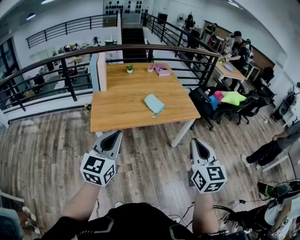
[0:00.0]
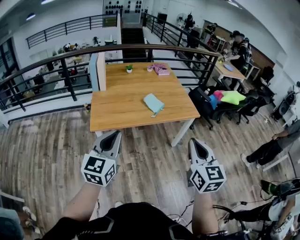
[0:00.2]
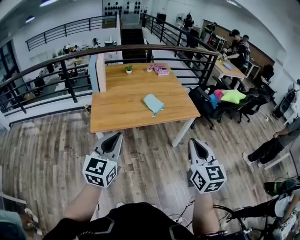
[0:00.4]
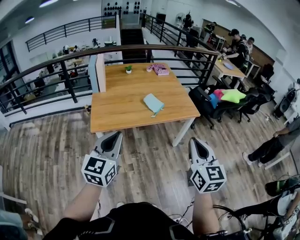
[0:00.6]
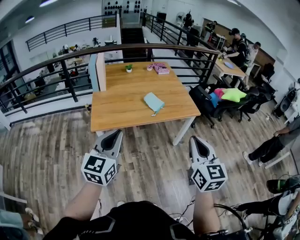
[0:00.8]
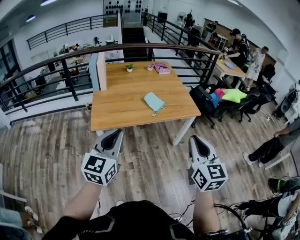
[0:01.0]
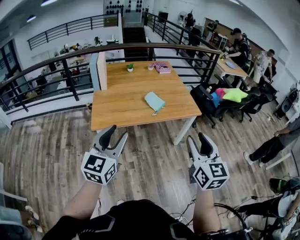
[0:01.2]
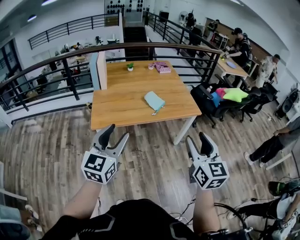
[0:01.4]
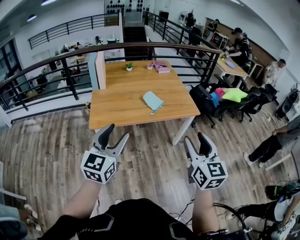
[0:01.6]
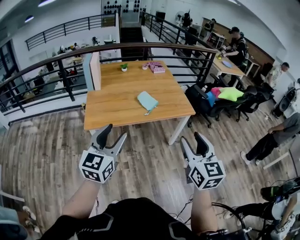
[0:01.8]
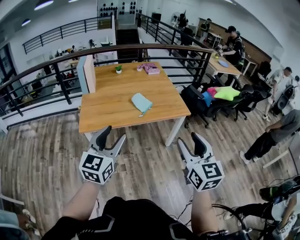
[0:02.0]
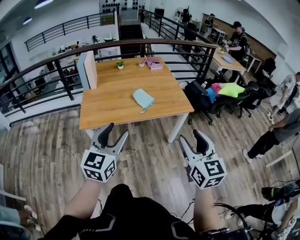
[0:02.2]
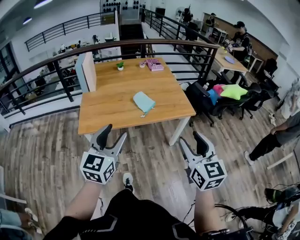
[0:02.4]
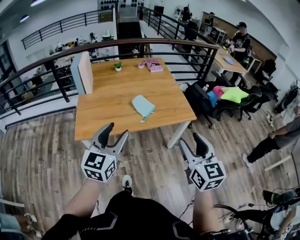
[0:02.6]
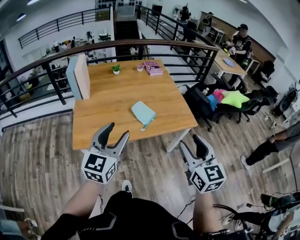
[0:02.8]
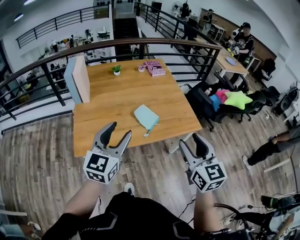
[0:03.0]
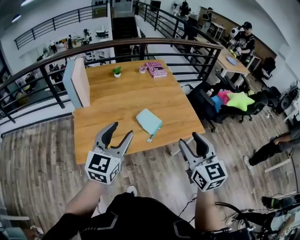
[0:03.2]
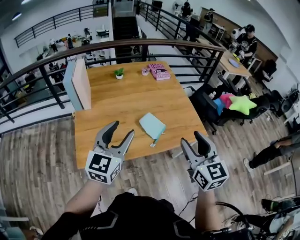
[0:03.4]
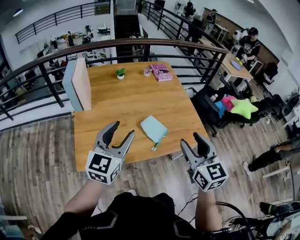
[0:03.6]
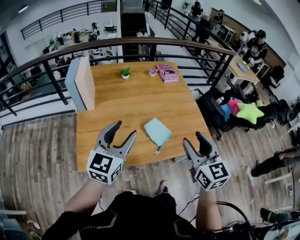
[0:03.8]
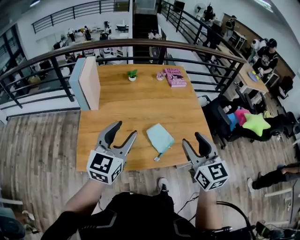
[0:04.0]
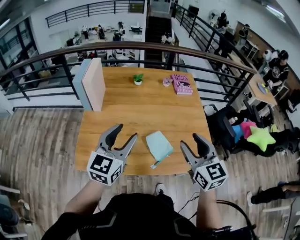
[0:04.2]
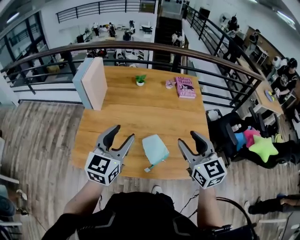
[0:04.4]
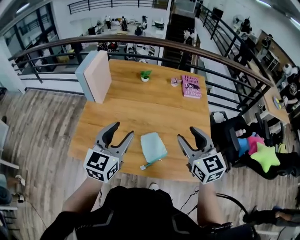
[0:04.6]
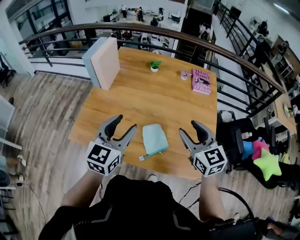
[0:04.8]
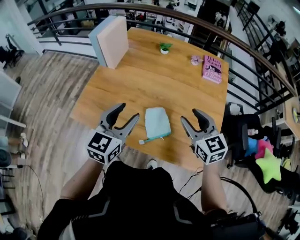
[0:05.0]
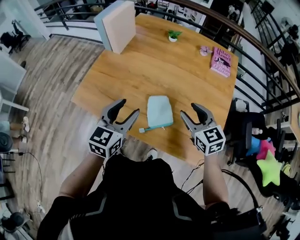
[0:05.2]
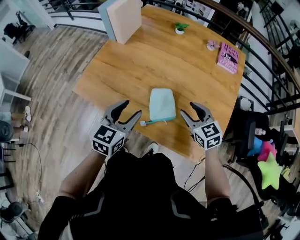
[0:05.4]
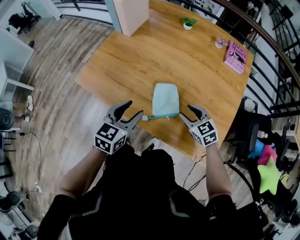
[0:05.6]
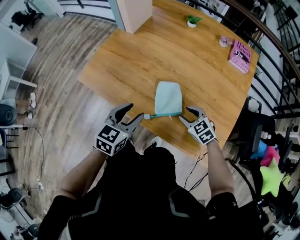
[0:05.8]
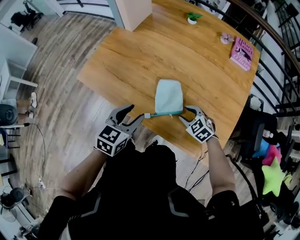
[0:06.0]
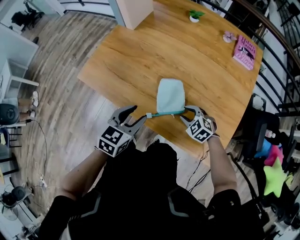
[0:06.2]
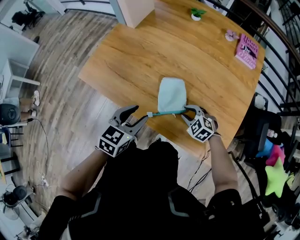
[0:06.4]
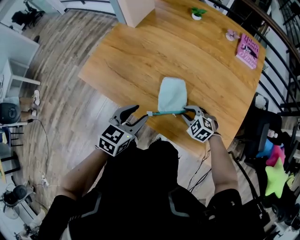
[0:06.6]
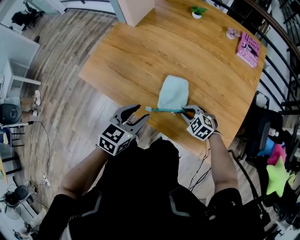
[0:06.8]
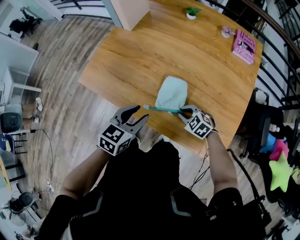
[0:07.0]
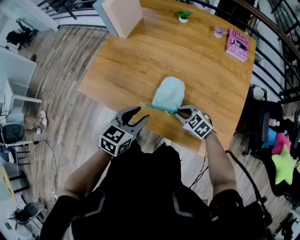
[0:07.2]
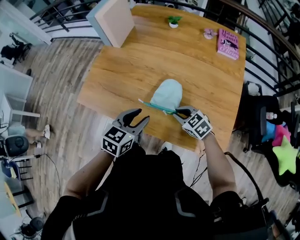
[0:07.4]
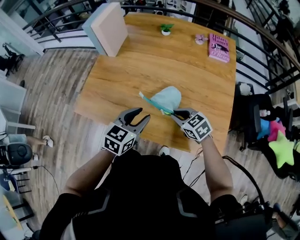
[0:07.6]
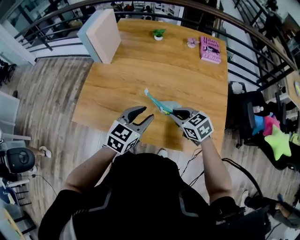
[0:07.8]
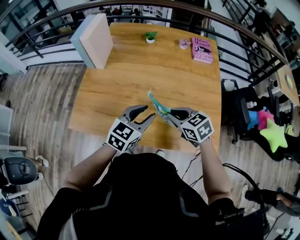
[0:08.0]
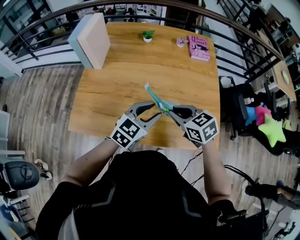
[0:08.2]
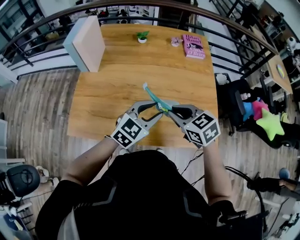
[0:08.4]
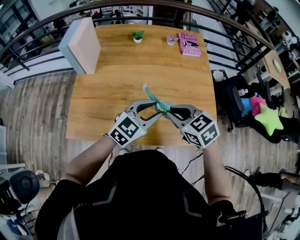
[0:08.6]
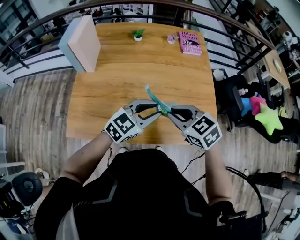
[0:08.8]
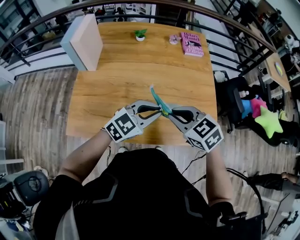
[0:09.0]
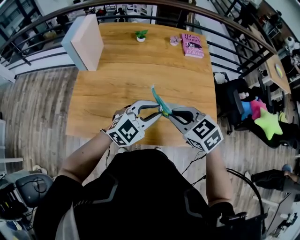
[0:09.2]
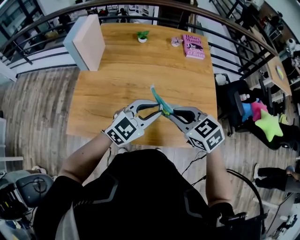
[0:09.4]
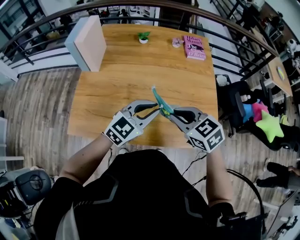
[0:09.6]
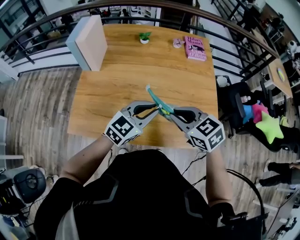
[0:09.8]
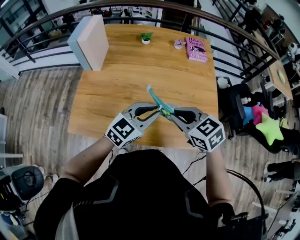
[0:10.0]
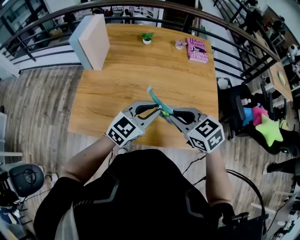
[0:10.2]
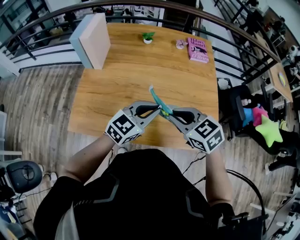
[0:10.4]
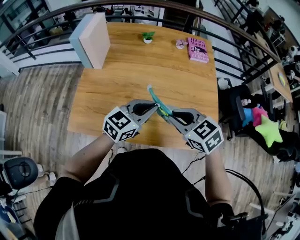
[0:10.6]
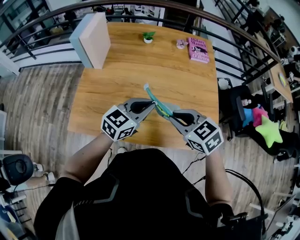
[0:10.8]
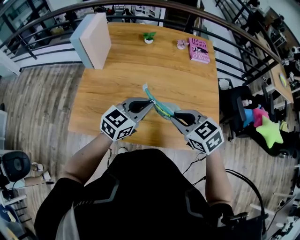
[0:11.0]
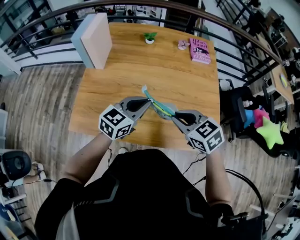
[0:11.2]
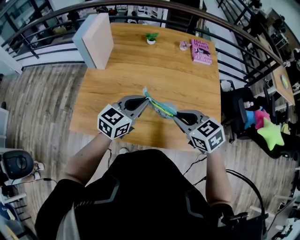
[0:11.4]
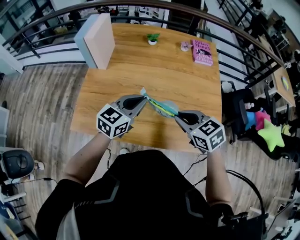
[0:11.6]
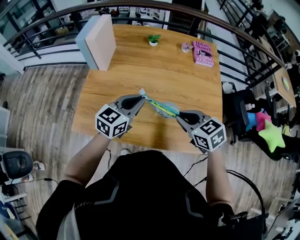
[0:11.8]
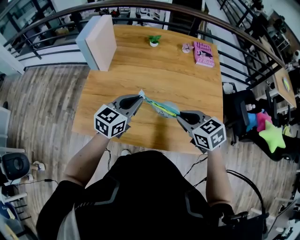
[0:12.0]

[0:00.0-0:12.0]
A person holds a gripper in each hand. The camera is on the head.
0:00.0 to 0:01.6: The right gripper opens up, while the left gripper opens its fingers.
0:01.6 to 0:03.0: The two grippers go roughly 25 cm forward.
0:03.0 to 0:04.4: The two grippers go roughly 25 cm forward. The right gripper rotates roughly 30 degrees.
0:04.4 to 0:06.0: The left gripper travels downward by approximately 20 cm, and swivels some 30 degrees. The right gripper goes approximately 35 cm downward, and tilts its fingers about 40 degrees downward.
0:06.0 to 0:07.6: The right gripper moves upward, some 10 cm, changes its angle by about 30 degrees, and closes its fingers. The left gripper shifts by roughly 5 cm.
0:07.6 to 0:09.0: The left gripper changes place by roughly 10 cm, turns by some 50 degrees, and closes up, while the right gripper shifts some 15 cm upward.
0:09.0 to 0:10.4: The grippers make only small movements.
0:10.4 to 0:12.0: The left gripper shifts some 10 cm to the left and forward.

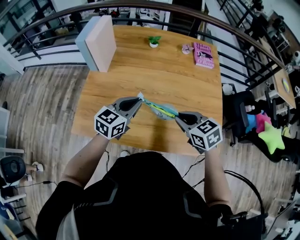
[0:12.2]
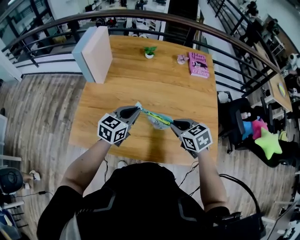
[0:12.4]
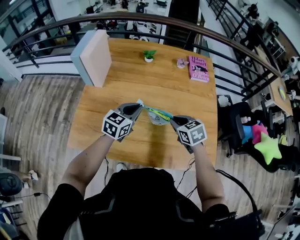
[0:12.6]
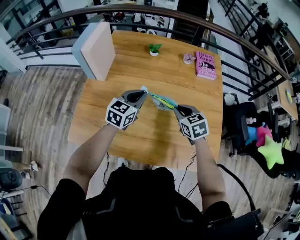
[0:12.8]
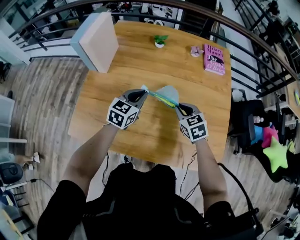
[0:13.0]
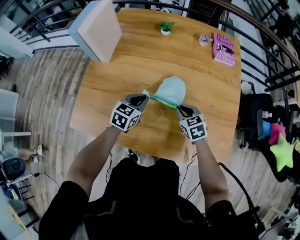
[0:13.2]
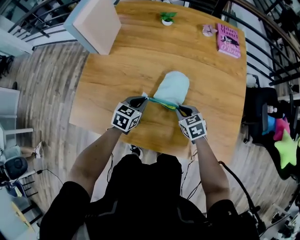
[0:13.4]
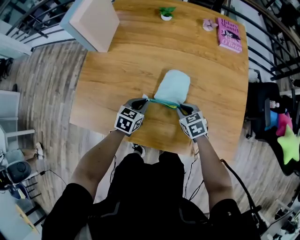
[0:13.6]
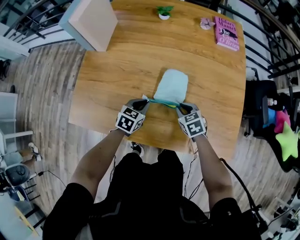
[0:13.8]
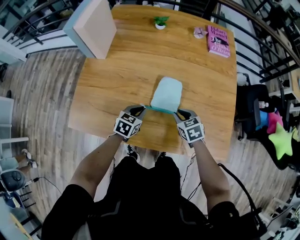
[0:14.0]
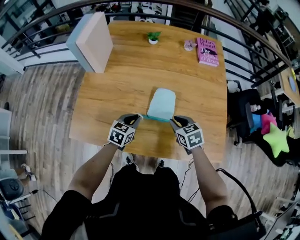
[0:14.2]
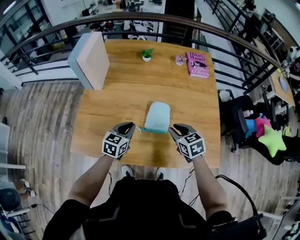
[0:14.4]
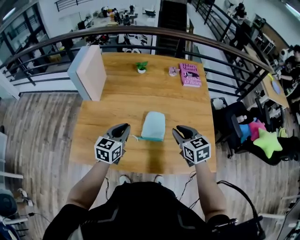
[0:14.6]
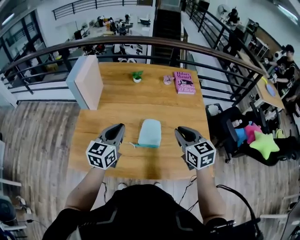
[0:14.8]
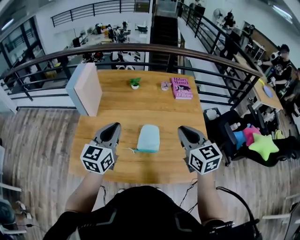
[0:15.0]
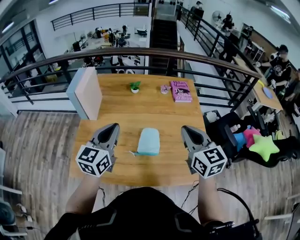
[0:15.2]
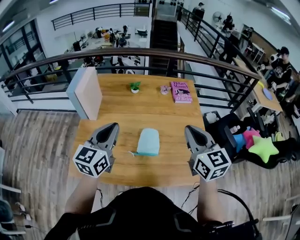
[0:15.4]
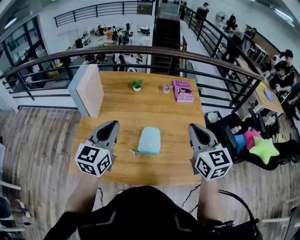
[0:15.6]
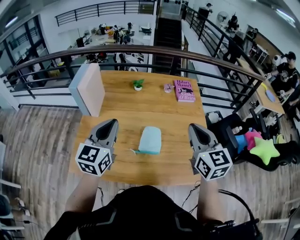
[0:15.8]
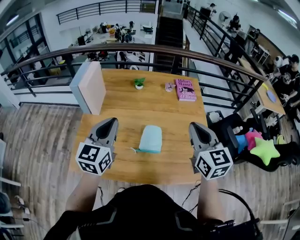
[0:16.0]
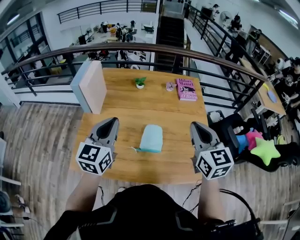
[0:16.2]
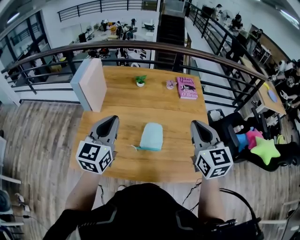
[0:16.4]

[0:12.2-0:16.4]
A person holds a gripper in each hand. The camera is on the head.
0:12.2 to 0:13.6: Both grippers move downward, roughly 25 cm. The left gripper rotates about 30 degrees.
0:13.6 to 0:15.0: Both grippers move upward, roughly 35 cm. The right gripper points its fingers about 40 degrees further upward. Meanwhile the left gripper tilts its fingers approximately 40 degrees upward.
0:15.0 to 0:16.4: The right gripper is displaced upward by roughly 5 cm.

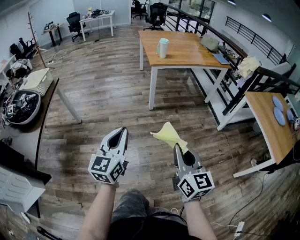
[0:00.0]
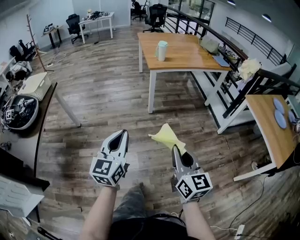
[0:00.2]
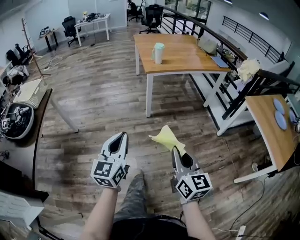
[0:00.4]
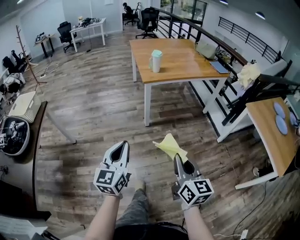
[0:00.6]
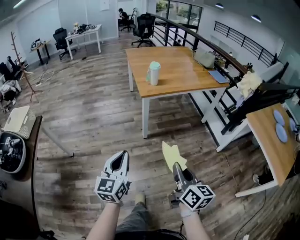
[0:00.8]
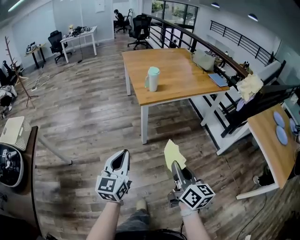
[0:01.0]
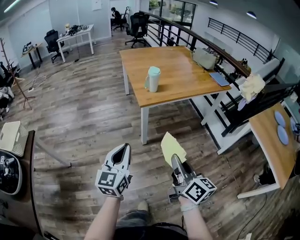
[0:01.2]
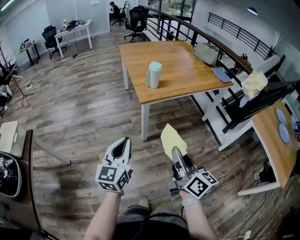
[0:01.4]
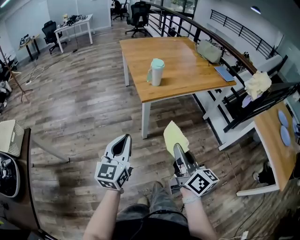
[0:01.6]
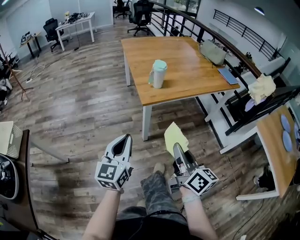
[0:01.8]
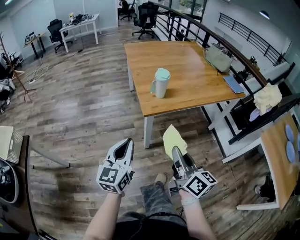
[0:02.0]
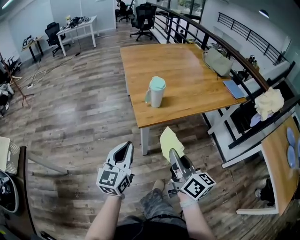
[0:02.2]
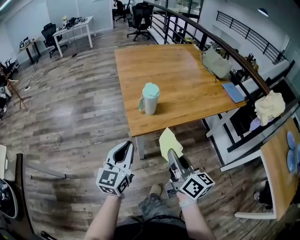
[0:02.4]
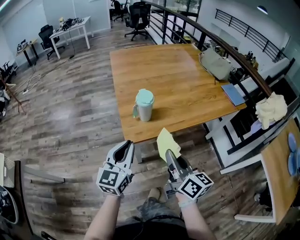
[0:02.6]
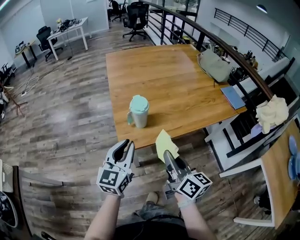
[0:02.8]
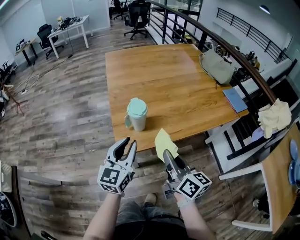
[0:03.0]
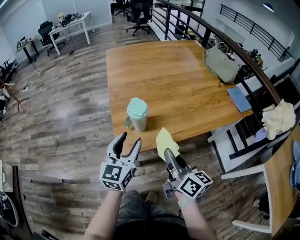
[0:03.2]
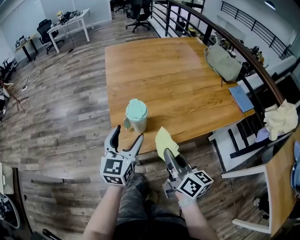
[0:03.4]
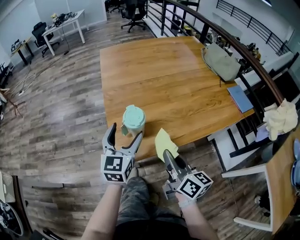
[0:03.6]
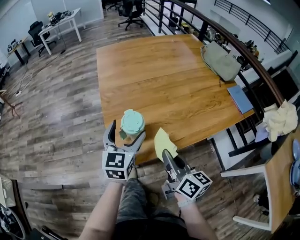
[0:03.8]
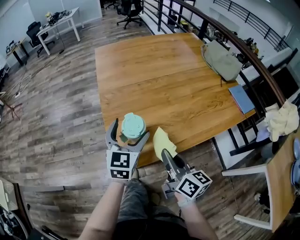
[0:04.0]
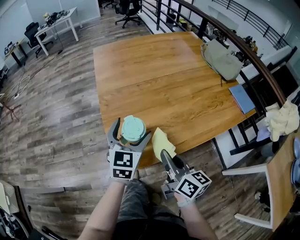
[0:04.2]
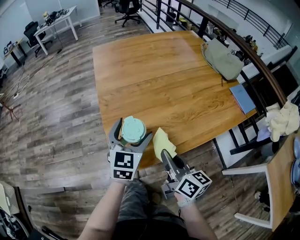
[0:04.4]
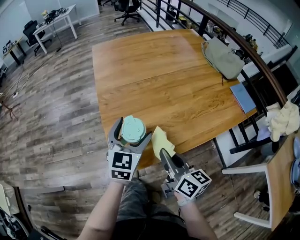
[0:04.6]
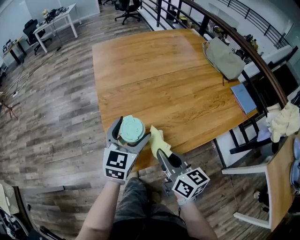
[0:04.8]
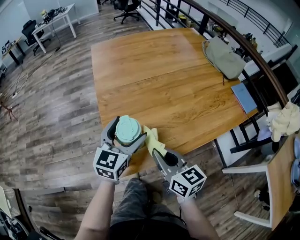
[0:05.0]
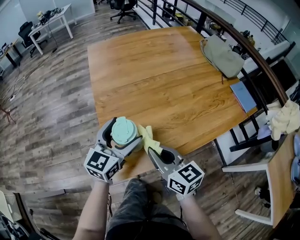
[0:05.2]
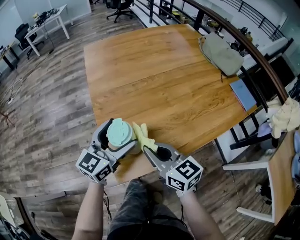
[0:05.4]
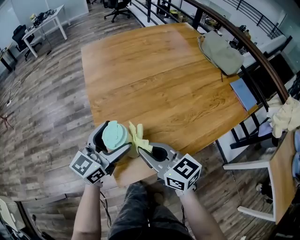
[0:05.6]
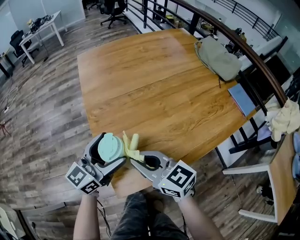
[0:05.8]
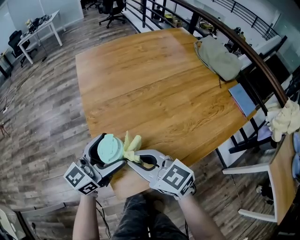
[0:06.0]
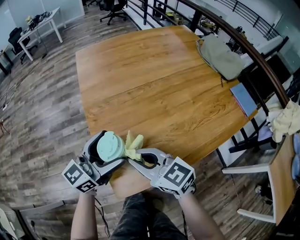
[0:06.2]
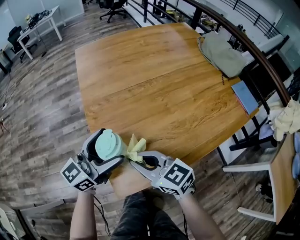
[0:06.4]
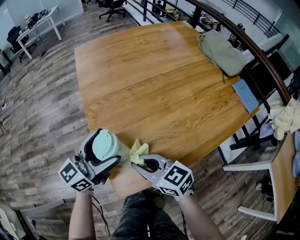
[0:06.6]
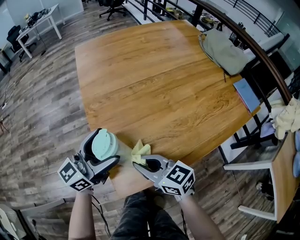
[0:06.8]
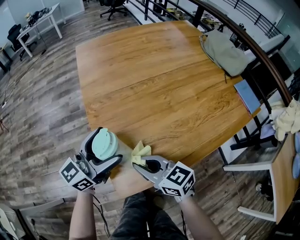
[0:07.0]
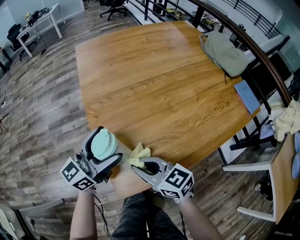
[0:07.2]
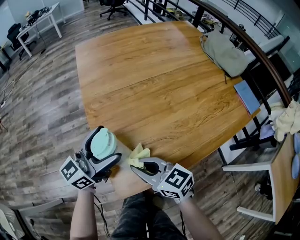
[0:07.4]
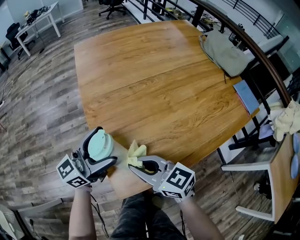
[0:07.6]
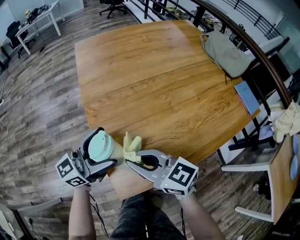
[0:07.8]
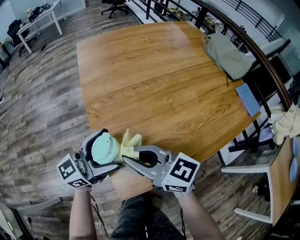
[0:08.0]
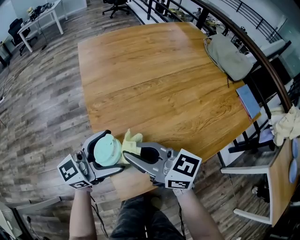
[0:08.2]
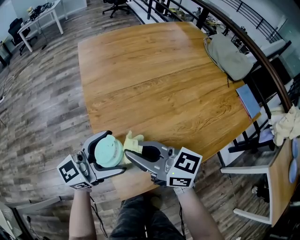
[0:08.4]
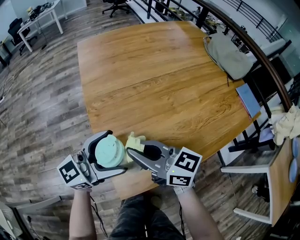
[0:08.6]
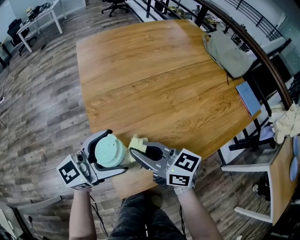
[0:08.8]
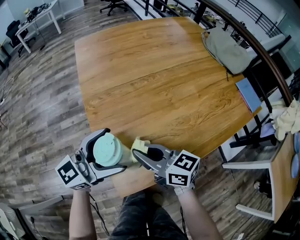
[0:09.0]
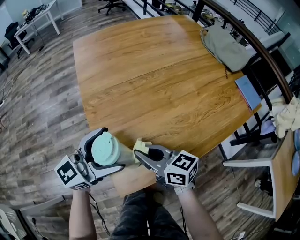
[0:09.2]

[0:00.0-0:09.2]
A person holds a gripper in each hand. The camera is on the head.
0:00.0 to 0:01.6: The pair of grippers is taken forward, about 40 cm. The right gripper swivels approximately 30 degrees.
0:01.6 to 0:03.0: The left gripper is displaced forward and to the right by about 35 cm; the right gripper heads forward, covering about 35 cm.
0:03.0 to 0:04.6: The grippers both shift forward by about 15 cm. The left gripper opens.
0:04.6 to 0:06.2: The right gripper heads to the left and forward, covering roughly 15 cm, and rotates roughly 40 degrees. The left gripper goes some 5 cm to the left, and changes its angle by some 40 degrees.
0:07.6 to 0:09.2: The right gripper reaches some 5 cm upward, then returns.
